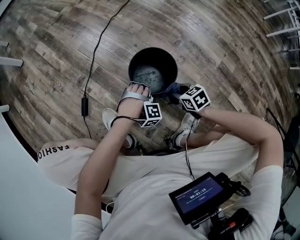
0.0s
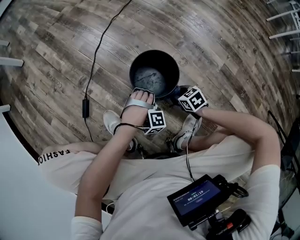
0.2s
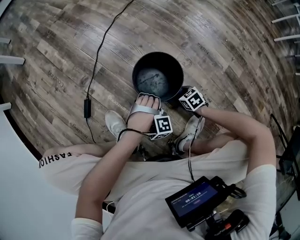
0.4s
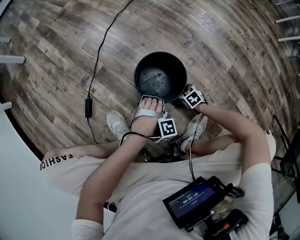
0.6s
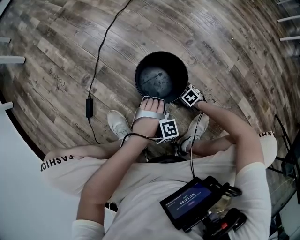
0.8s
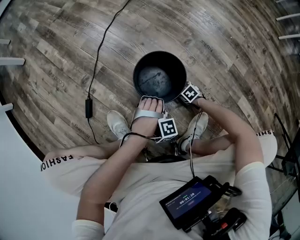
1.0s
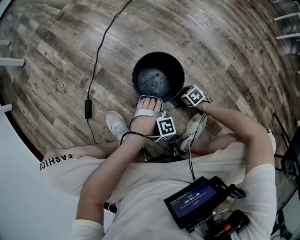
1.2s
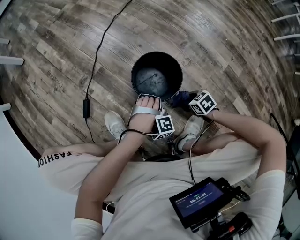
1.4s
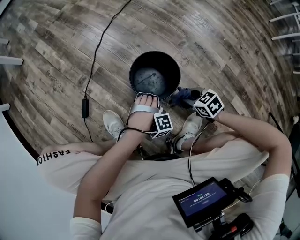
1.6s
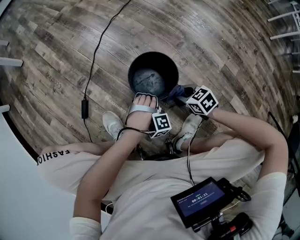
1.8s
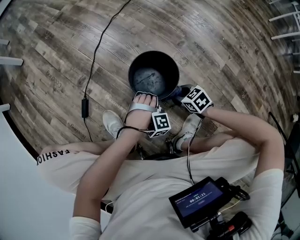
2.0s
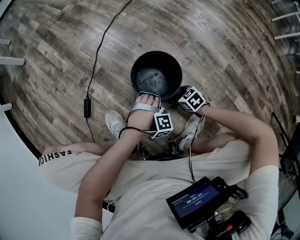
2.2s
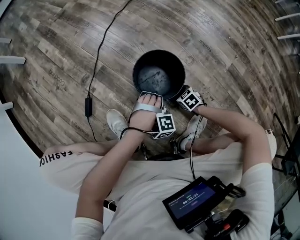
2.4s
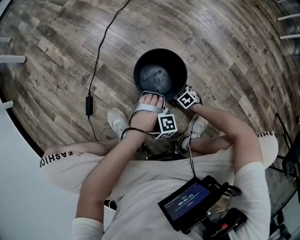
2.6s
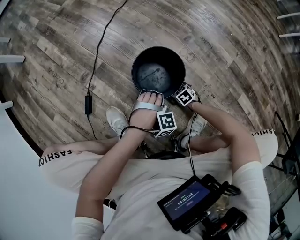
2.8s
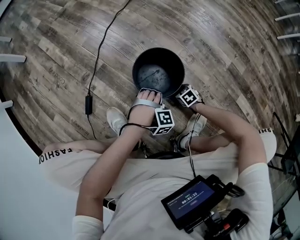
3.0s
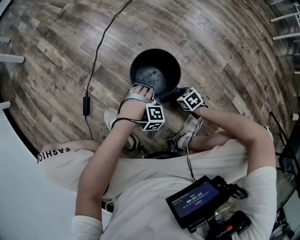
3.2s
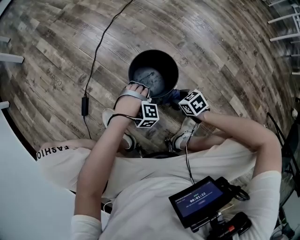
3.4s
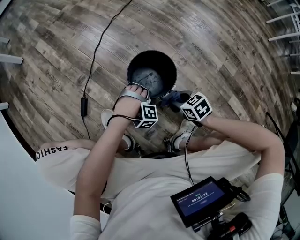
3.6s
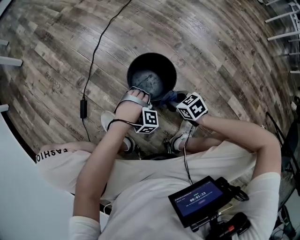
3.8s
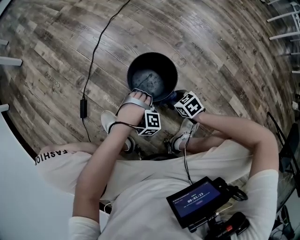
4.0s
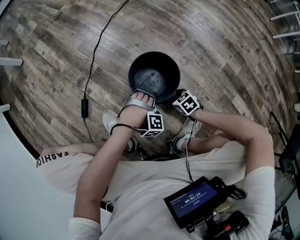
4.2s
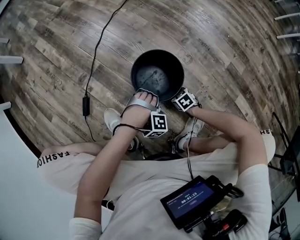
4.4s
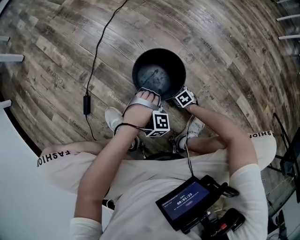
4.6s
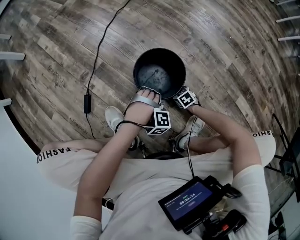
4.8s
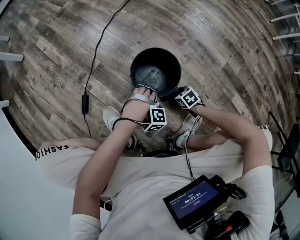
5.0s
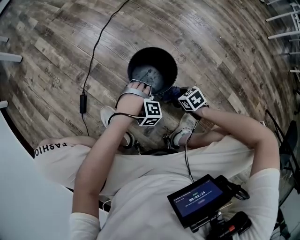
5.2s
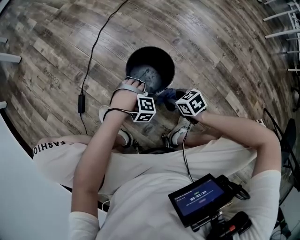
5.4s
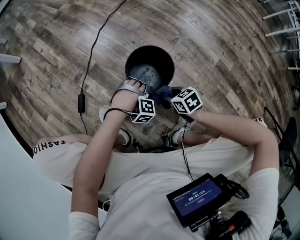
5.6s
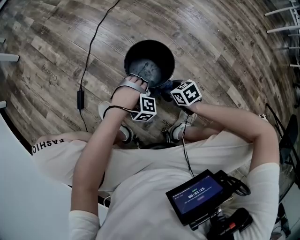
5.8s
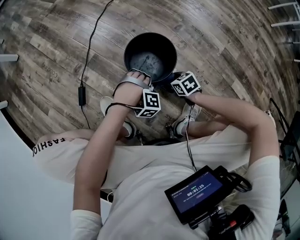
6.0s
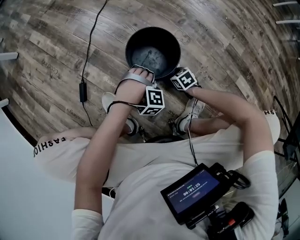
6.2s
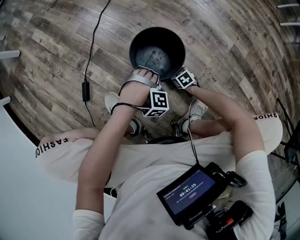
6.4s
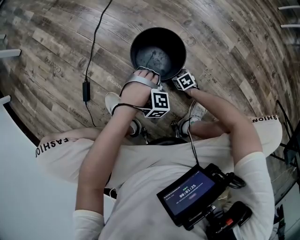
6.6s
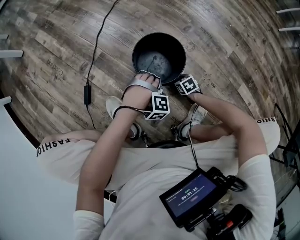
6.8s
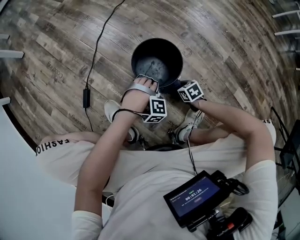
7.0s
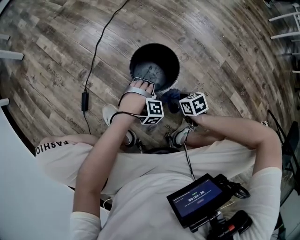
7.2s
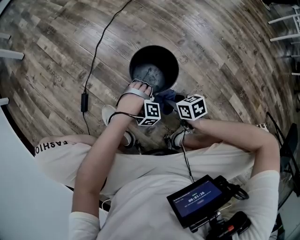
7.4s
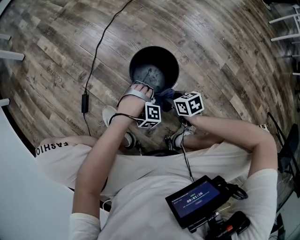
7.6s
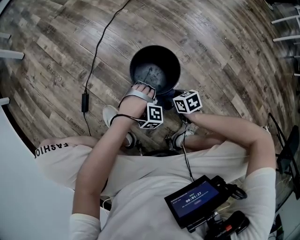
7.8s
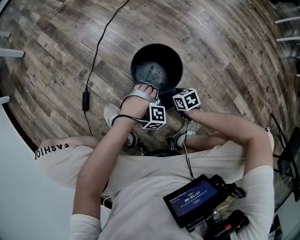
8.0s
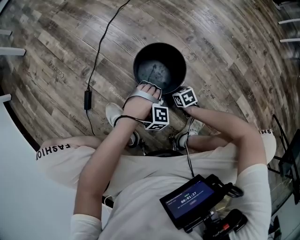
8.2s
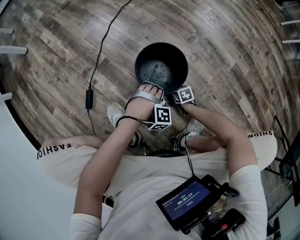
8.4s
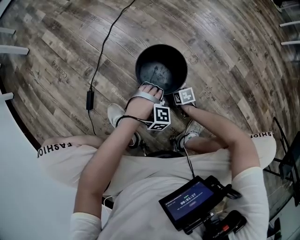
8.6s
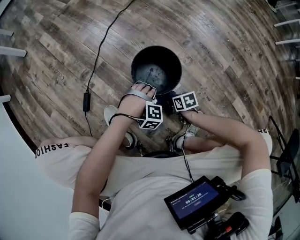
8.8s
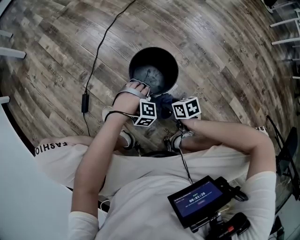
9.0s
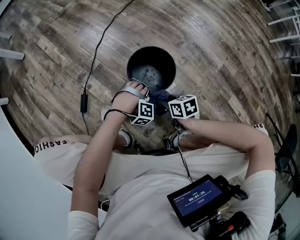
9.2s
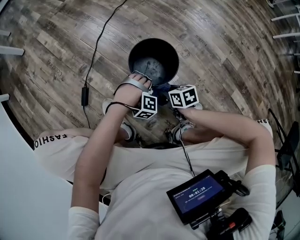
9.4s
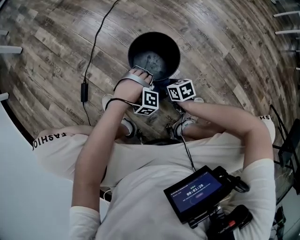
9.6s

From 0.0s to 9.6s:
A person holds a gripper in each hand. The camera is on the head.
From 0.0s to 1.6s: The right gripper travels downward and back again, approximately 20 cm each way.
From 1.6s to 3.2s: The right gripper goes roughly 10 cm downward.
From 3.2s to 4.8s: The right gripper goes roughly 10 cm downward.
From 4.8s to 6.4s: The right gripper goes upward and returns, roughly 20 cm each way.
From 6.4s to 8.0s: The right gripper is displaced upward by some 10 cm.
From 8.0s to 9.6s: The right gripper moves up and down over approximately 20 cm, changing direction 2 times.

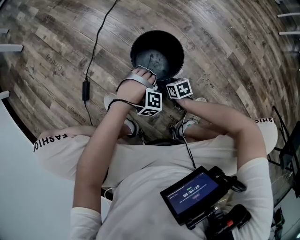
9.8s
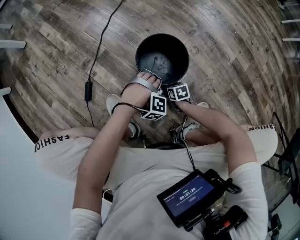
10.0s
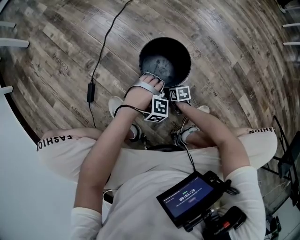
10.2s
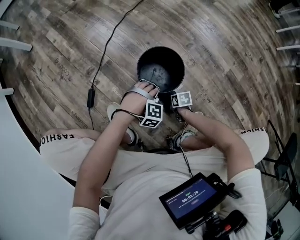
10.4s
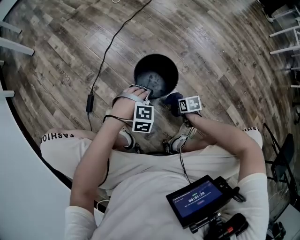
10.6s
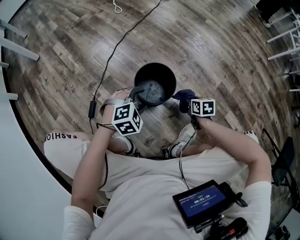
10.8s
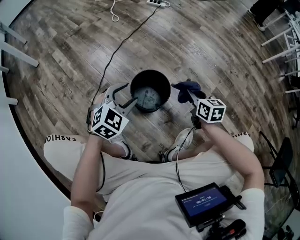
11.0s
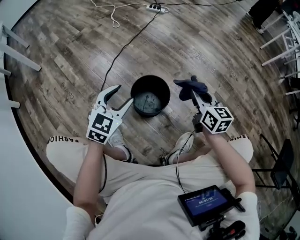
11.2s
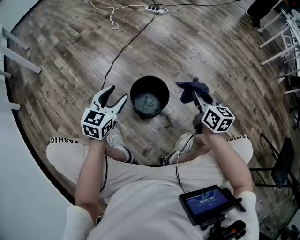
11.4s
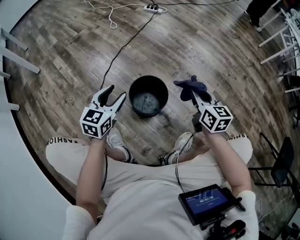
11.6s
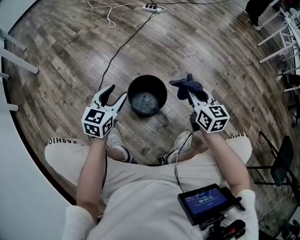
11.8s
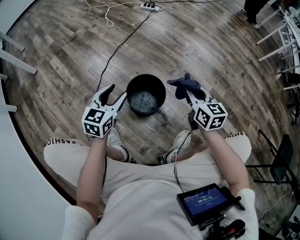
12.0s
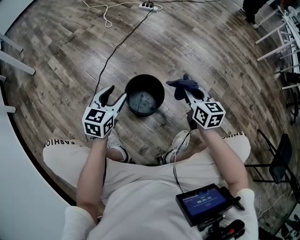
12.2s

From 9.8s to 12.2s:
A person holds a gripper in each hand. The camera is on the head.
From 9.8s to 11.0s: The right gripper travels upward by about 30 cm, and changes its angle by some 30 degrees.
From 11.0s to 12.2s: The right gripper moves upward, approximately 5 cm.

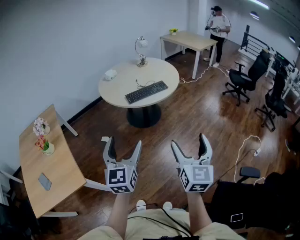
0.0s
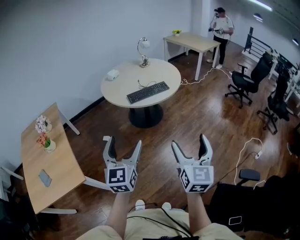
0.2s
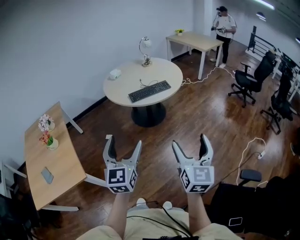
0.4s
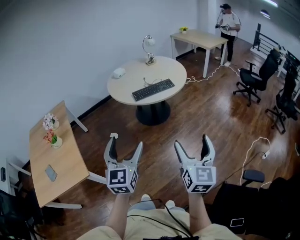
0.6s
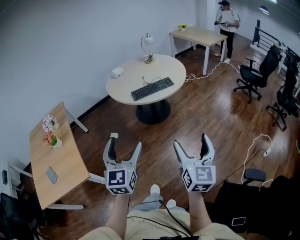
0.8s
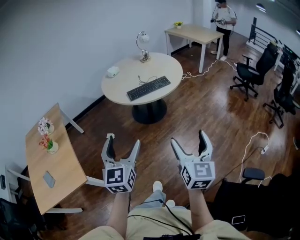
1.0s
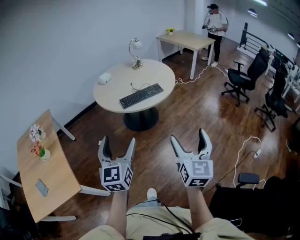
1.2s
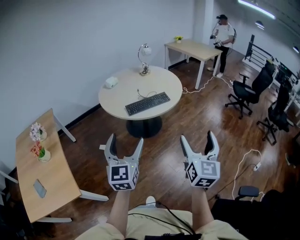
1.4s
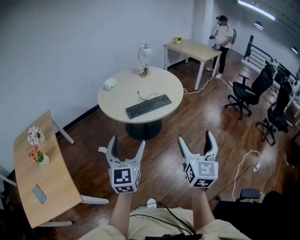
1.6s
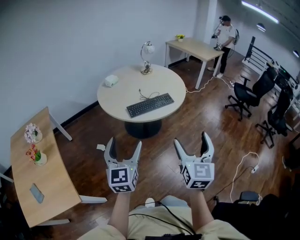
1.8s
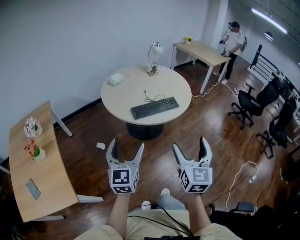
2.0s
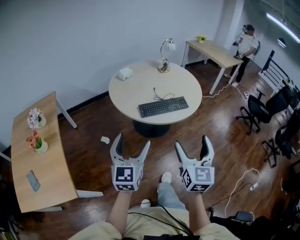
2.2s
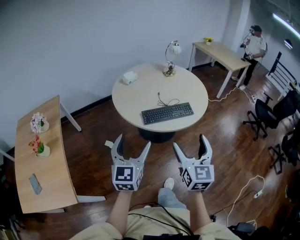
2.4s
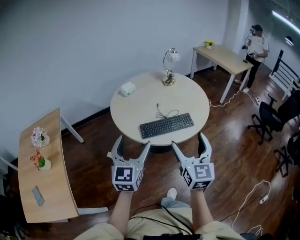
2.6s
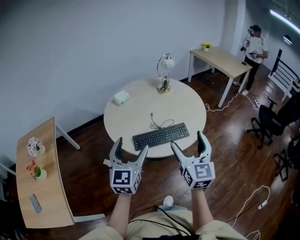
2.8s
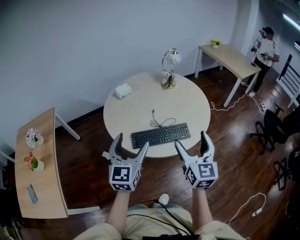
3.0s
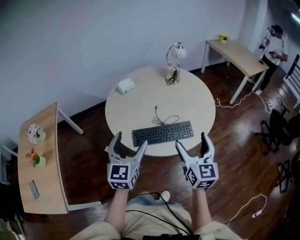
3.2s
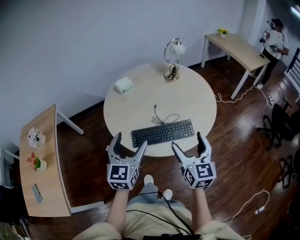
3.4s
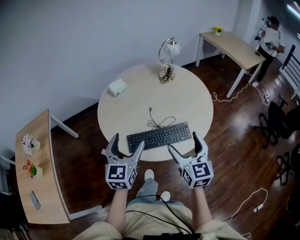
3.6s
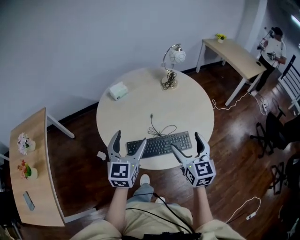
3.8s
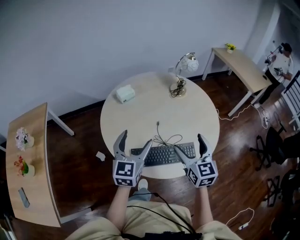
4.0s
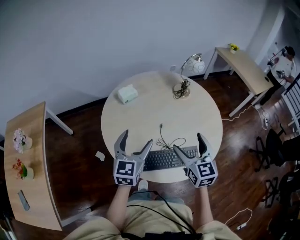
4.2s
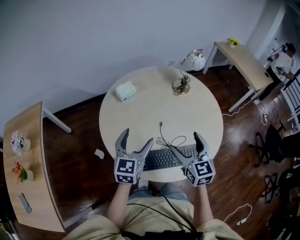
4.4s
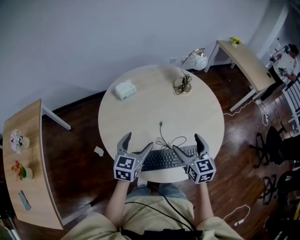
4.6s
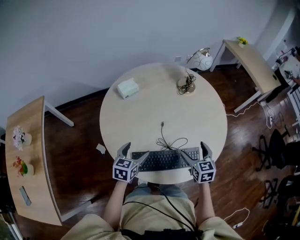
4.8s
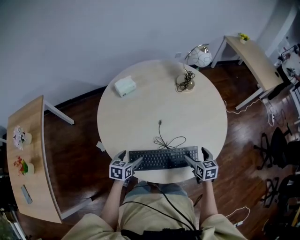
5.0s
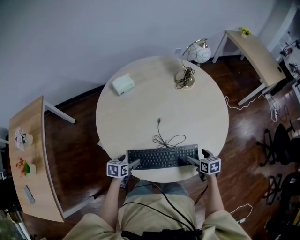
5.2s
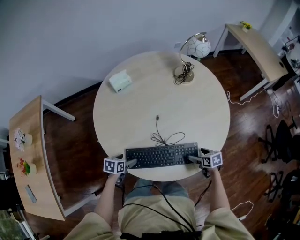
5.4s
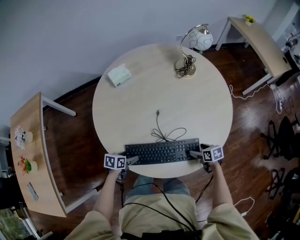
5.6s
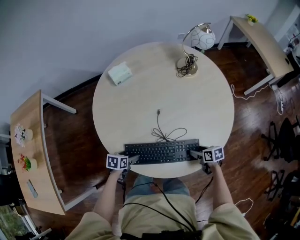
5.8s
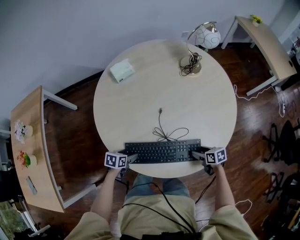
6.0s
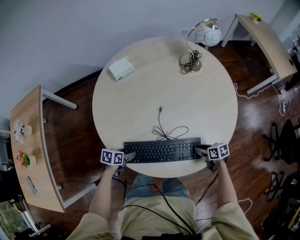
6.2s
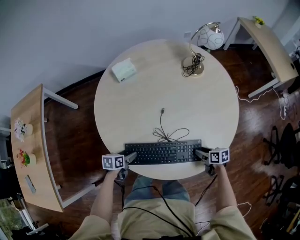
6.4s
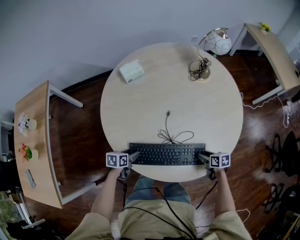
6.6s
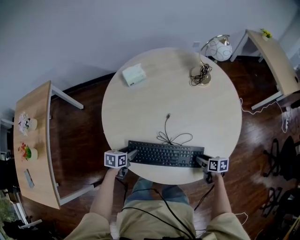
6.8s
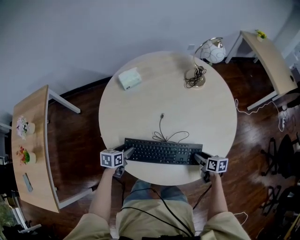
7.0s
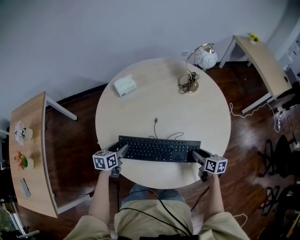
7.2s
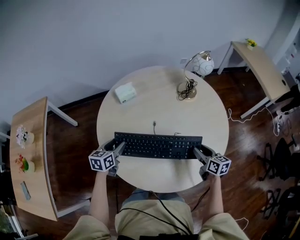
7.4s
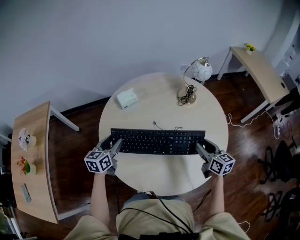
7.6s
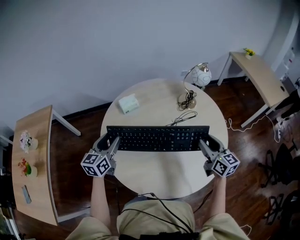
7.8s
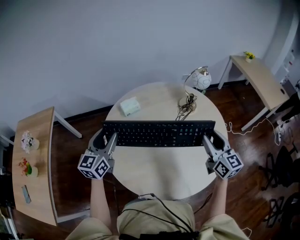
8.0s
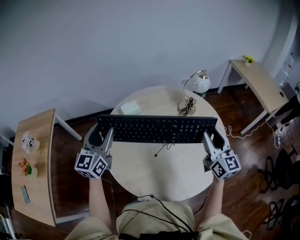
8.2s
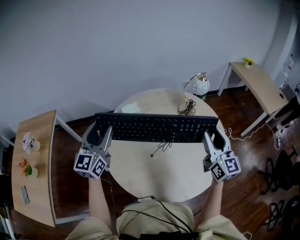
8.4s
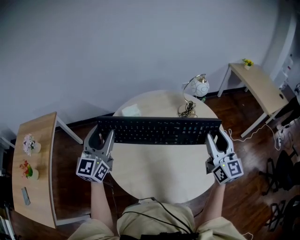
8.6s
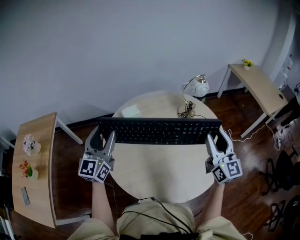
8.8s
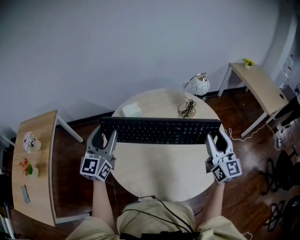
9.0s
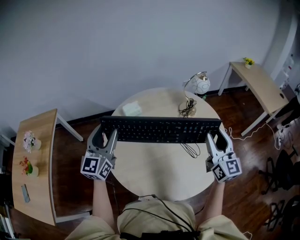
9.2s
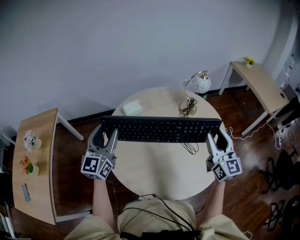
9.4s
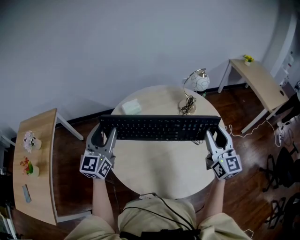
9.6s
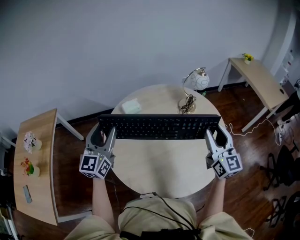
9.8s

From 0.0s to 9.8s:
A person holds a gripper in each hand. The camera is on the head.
From 0.0s to 1.4s: The right gripper shifts some 15 cm forward and to the right. The left gripper shifts roughly 10 cm forward.
From 1.4s to 2.8s: The grippers both shift forward by approximately 40 cm. The right gripper rotates roughly 20 degrees.
From 2.8s to 4.2s: The grippers both shift forward by roughly 30 cm. The right gripper rotates approximately 20 degrees.
From 4.2s to 5.6s: The right gripper is displaced downward and to the right by approximately 40 cm, and tips its fingers downward by roughly 40 degrees. Meanwhile the left gripper moves downward, some 35 cm, and tilts its fingers approximately 40 degrees downward.
From 5.6s to 7.0s: The left gripper moves approximately 10 cm, and closes its fingers, while the right gripper changes place by some 5 cm, and closes up.
From 7.0s to 8.4s: Both grippers move upward, some 40 cm. The right gripper angles its fingers upward, by about 50 degrees, while the left gripper angles its fingers upward, by roughly 50 degrees.
From 8.4s to 9.8s: The grippers move only a little.

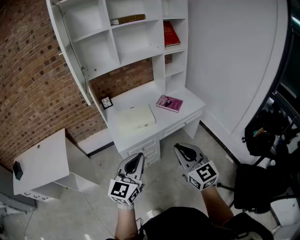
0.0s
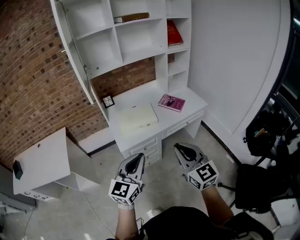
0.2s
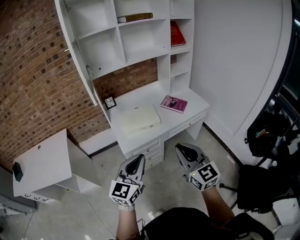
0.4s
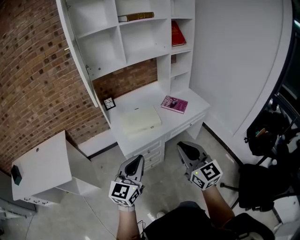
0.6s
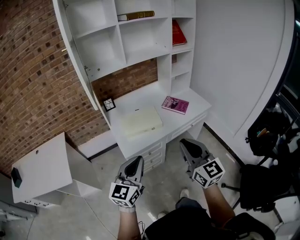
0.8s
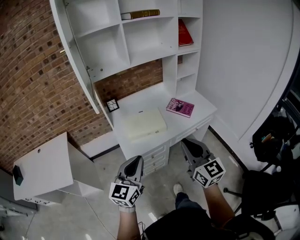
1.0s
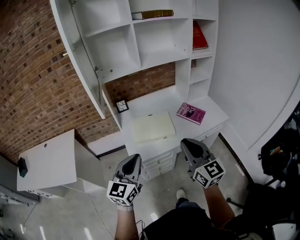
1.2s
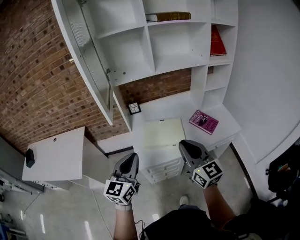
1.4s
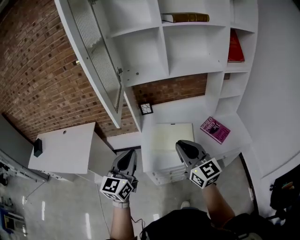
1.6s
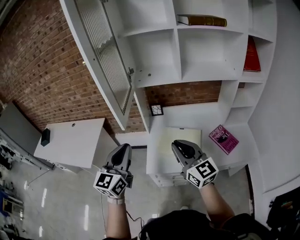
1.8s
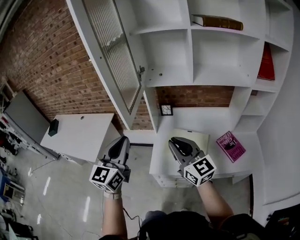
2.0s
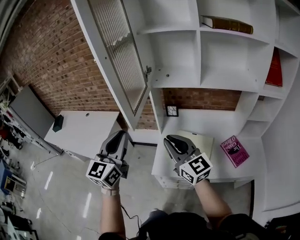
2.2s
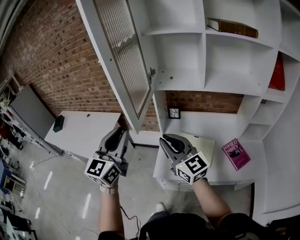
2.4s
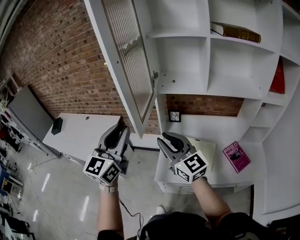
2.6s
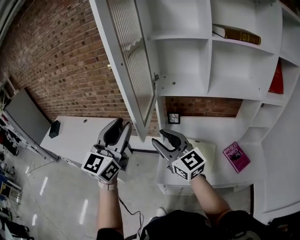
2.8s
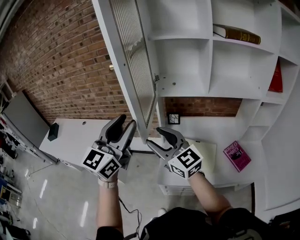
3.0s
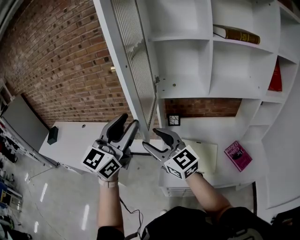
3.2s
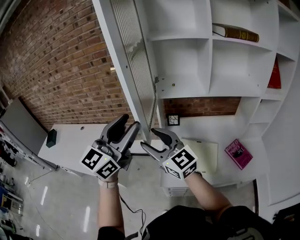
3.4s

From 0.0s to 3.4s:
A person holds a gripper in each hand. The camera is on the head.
From 0.0s to 1.6s: The left gripper changes place by about 30 cm, and swivels roughly 30 degrees. Meanwhile the right gripper changes place by roughly 30 cm, and changes its angle by roughly 20 degrees.
From 1.6s to 3.4s: The left gripper travels upward and forward by some 20 cm, and opens up, while the right gripper travels to the left and forward by about 25 cm, changes its angle by roughly 30 degrees, and opens.
